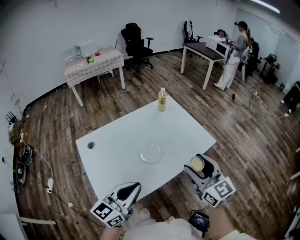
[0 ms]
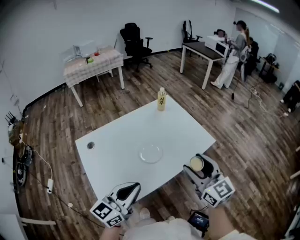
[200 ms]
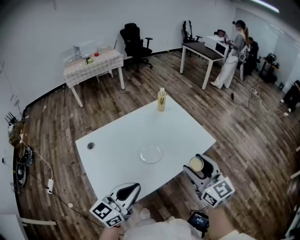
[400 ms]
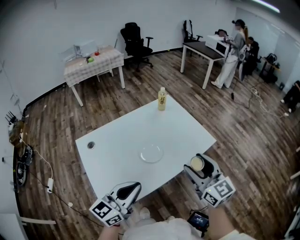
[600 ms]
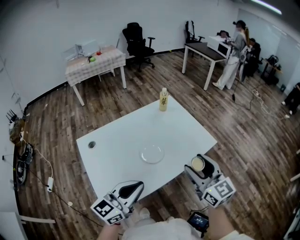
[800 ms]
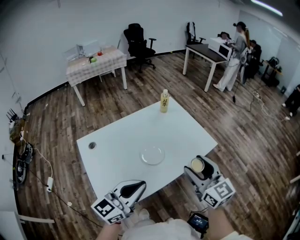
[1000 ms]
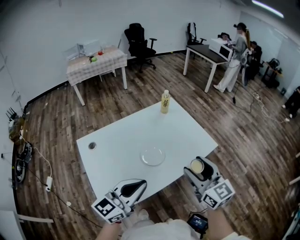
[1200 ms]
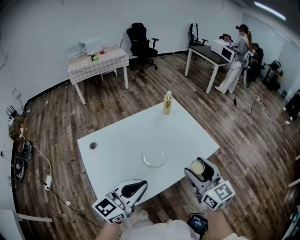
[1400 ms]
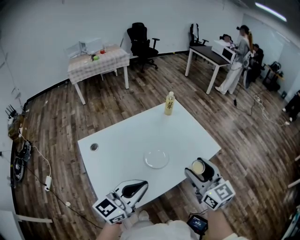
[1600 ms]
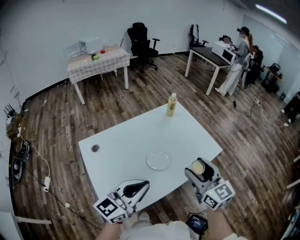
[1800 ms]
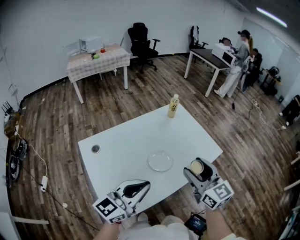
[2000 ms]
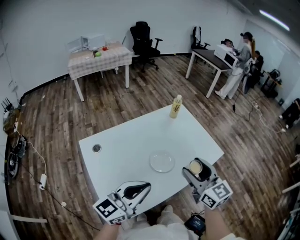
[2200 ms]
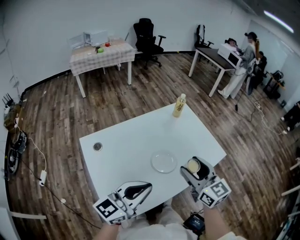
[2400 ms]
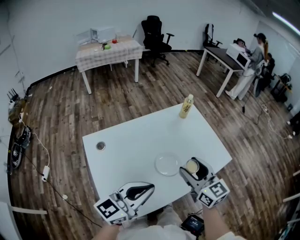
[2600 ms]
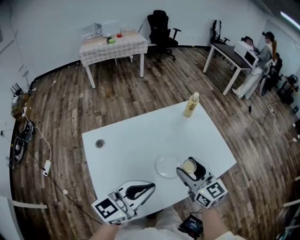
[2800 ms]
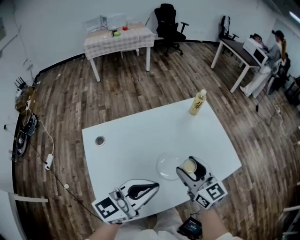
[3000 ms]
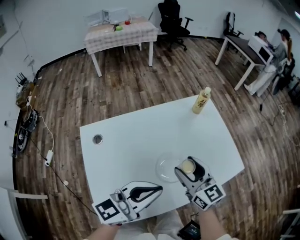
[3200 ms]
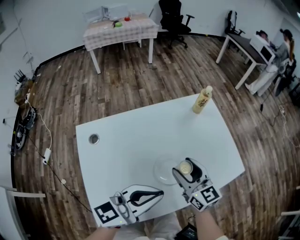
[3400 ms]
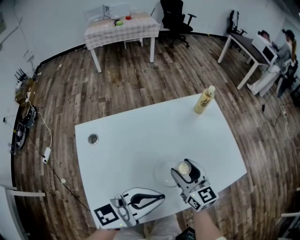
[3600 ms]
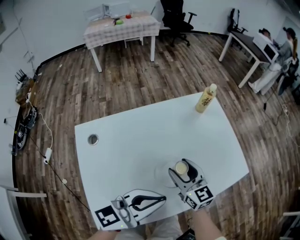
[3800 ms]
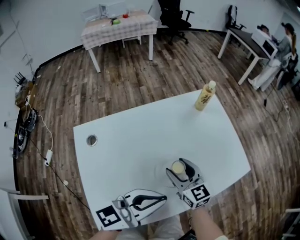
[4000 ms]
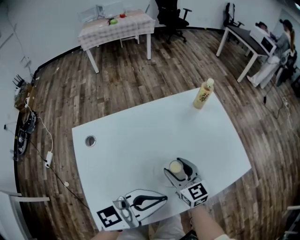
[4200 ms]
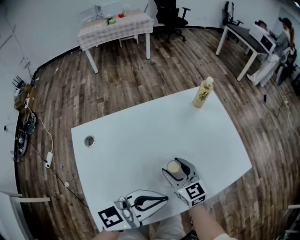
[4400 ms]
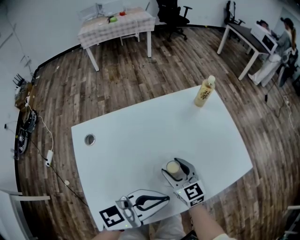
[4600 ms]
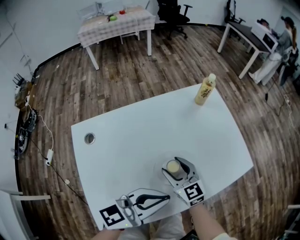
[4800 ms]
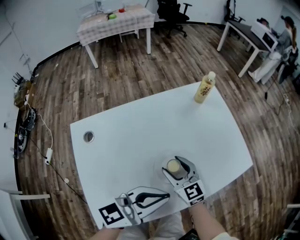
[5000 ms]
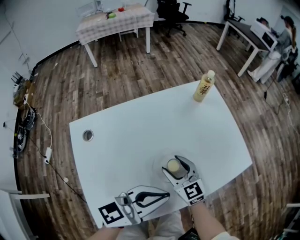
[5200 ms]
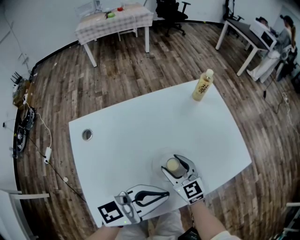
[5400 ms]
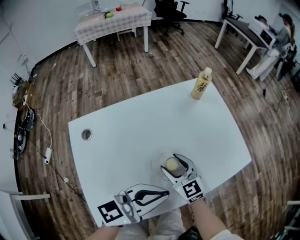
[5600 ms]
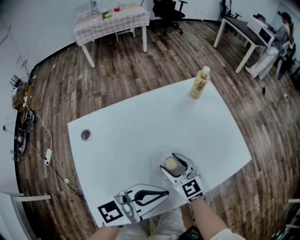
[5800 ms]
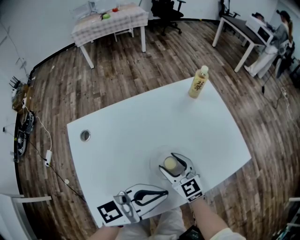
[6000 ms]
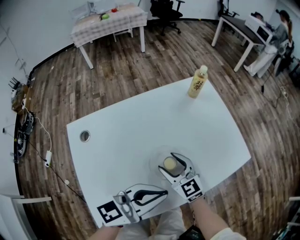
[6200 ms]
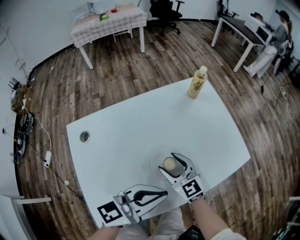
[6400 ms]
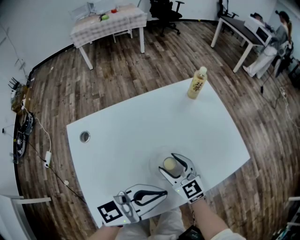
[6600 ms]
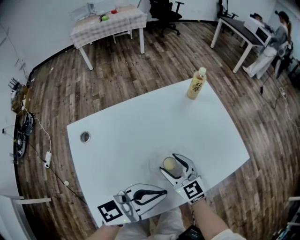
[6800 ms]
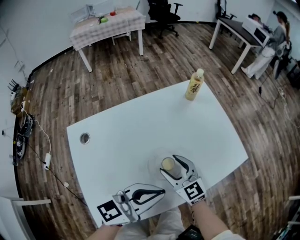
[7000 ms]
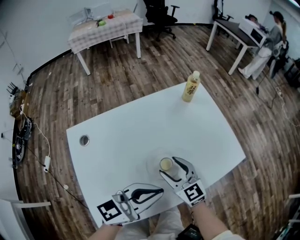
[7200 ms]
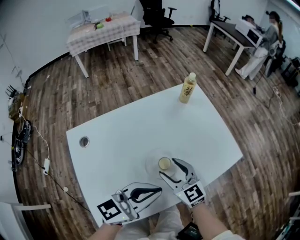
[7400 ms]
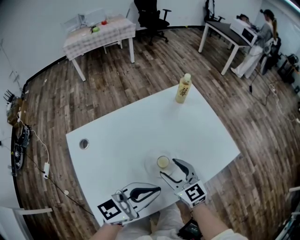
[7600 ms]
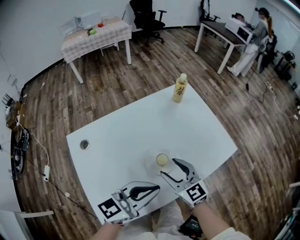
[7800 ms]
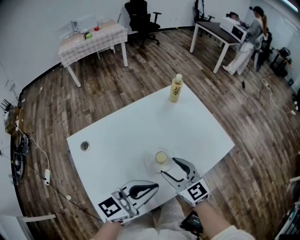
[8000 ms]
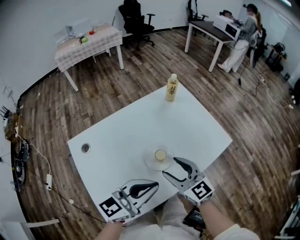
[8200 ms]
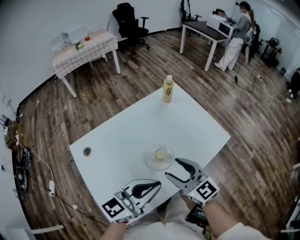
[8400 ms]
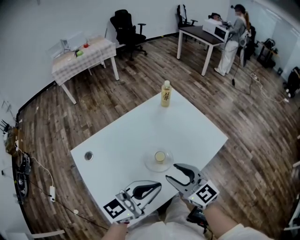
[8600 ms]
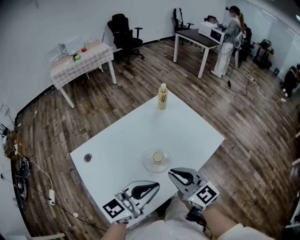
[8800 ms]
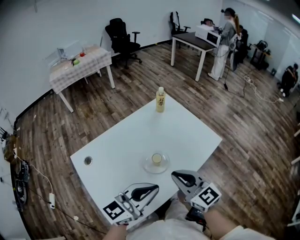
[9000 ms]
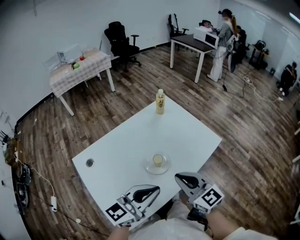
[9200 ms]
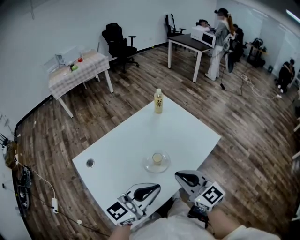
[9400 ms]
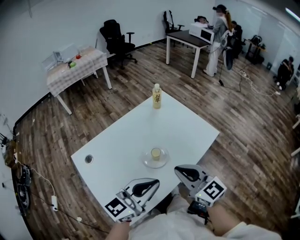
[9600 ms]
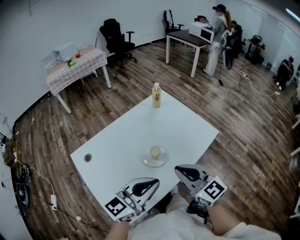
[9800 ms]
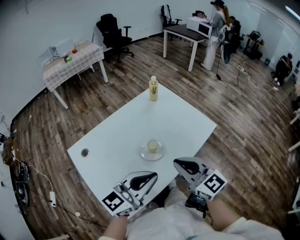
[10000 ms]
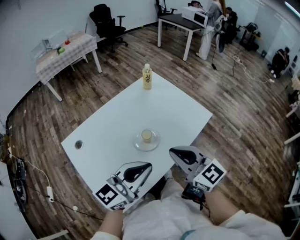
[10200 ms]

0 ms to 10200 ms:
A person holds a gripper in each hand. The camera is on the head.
0 ms to 1400 ms: The grippers stay close to where they were, moving slightly.
1400 ms to 3000 ms: The left gripper goes some 10 cm forward. The right gripper heads to the left, forward and downward, covering roughly 20 cm.
3000 ms to 4400 ms: The right gripper goes some 15 cm downward, while the left gripper shifts roughly 5 cm downward.
4400 ms to 7200 ms: The grippers move only a little.
7200 ms to 8800 ms: The left gripper shifts about 10 cm backward and upward. The right gripper is displaced upward and backward by approximately 15 cm, and closes up.
8800 ms to 10200 ms: The right gripper changes place by approximately 5 cm.

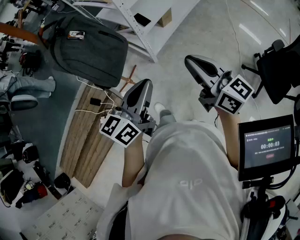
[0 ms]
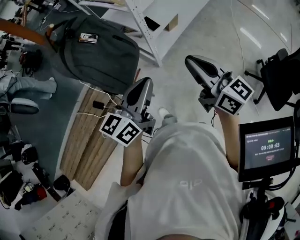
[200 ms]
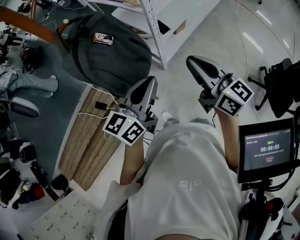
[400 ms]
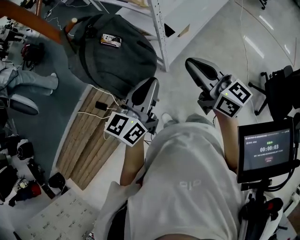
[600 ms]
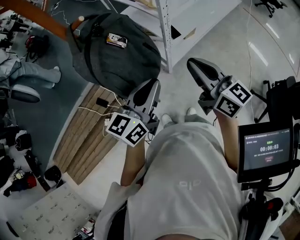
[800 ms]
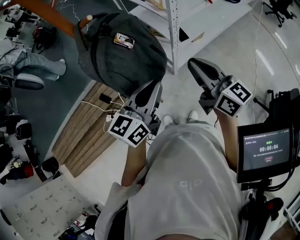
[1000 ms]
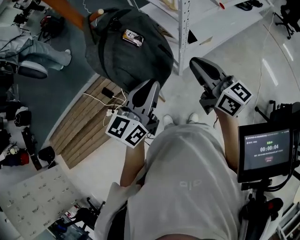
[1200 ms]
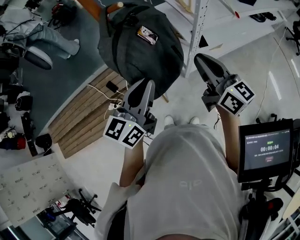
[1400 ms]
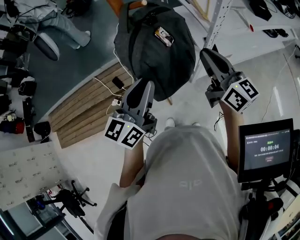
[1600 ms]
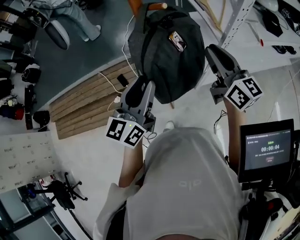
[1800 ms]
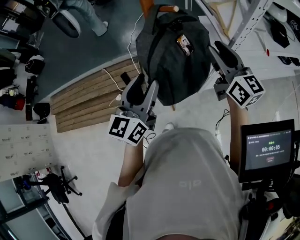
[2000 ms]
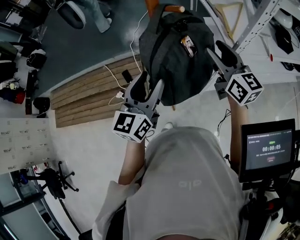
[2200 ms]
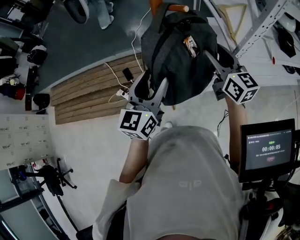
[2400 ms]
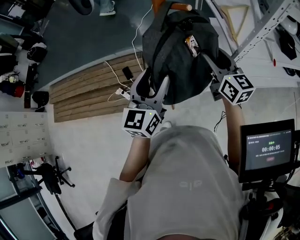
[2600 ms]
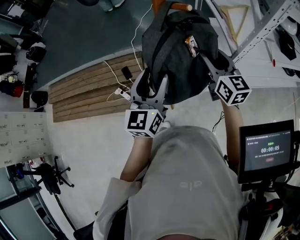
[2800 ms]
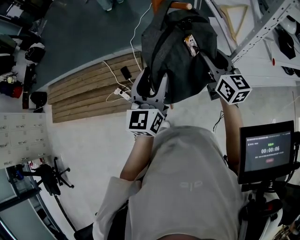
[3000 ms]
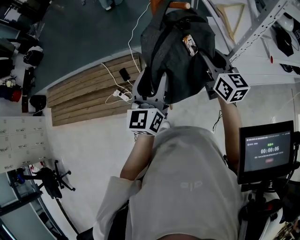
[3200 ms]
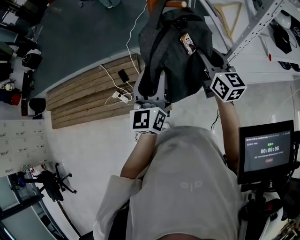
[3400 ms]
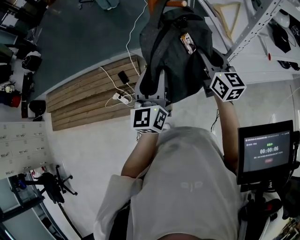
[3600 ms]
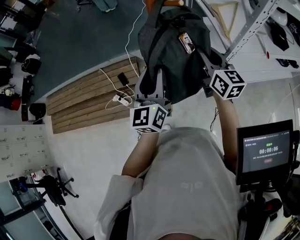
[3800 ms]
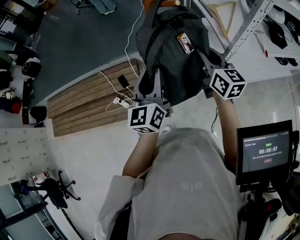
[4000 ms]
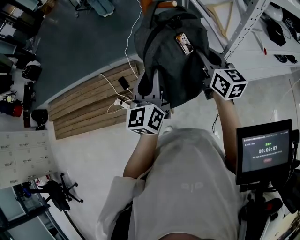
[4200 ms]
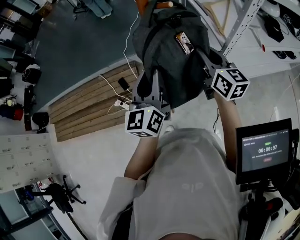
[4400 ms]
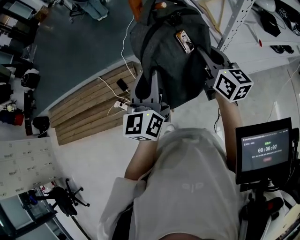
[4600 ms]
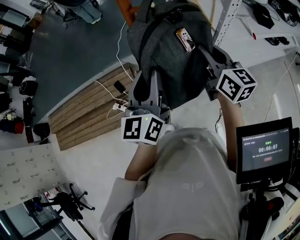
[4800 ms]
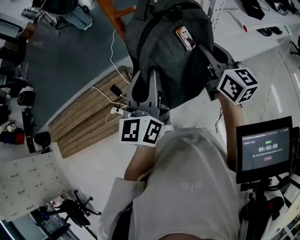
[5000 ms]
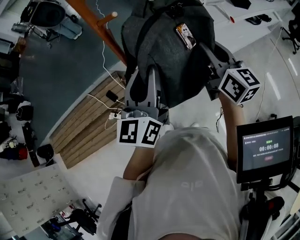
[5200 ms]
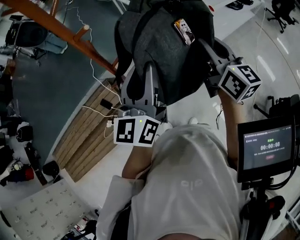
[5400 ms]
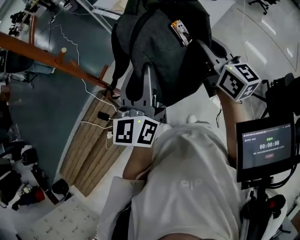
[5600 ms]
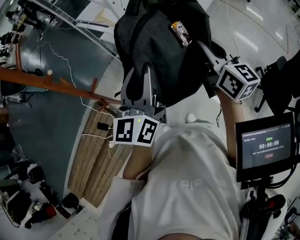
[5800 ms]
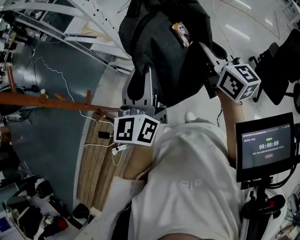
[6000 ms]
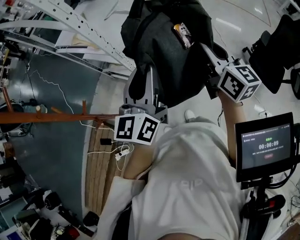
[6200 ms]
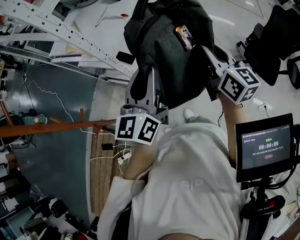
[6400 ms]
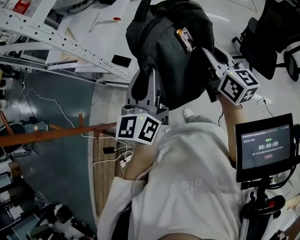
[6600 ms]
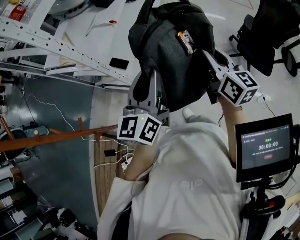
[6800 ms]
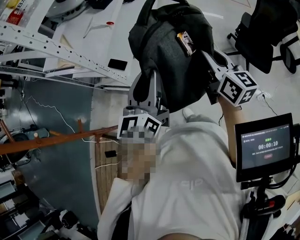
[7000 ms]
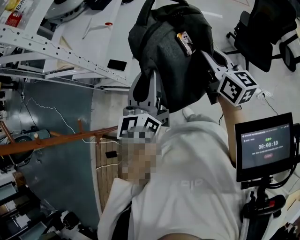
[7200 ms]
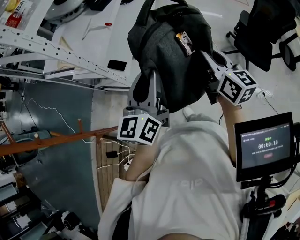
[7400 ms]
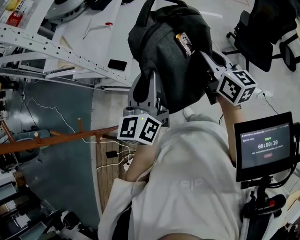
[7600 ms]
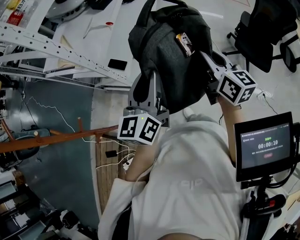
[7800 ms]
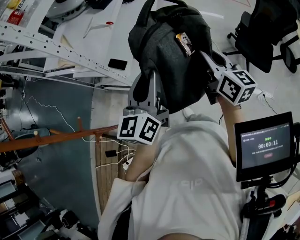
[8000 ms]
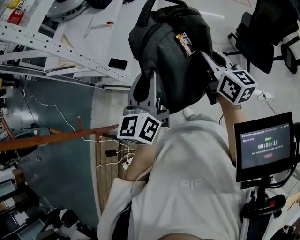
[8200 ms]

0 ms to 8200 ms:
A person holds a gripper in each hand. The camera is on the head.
0 ms to 1600 ms: The left gripper changes place by some 30 cm, and rotates approximately 40 degrees. The right gripper shifts by some 40 cm, and changes its angle by roughly 20 degrees.
1600 ms to 3200 ms: The left gripper moves approximately 5 cm, rotates about 30 degrees, and opens up. The right gripper is displaced forward and downward by some 10 cm, and opens up.
3200 ms to 5000 ms: The right gripper travels upward and to the right by roughly 10 cm. The left gripper travels upward by about 5 cm, and closes.
5000 ms to 6600 ms: The left gripper changes place by approximately 35 cm, and swivels about 60 degrees. The right gripper shifts by roughly 40 cm, and turns by some 50 degrees.
6600 ms to 8200 ms: The grippers stay close to where they were, moving slightly.

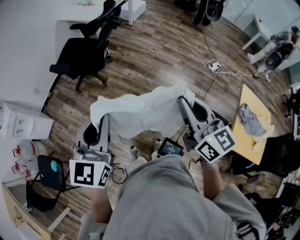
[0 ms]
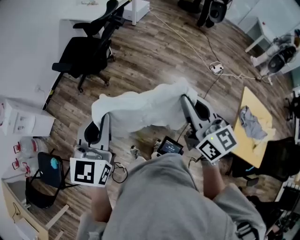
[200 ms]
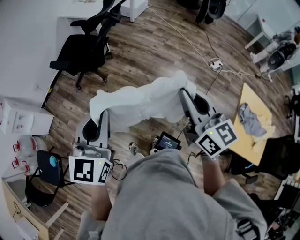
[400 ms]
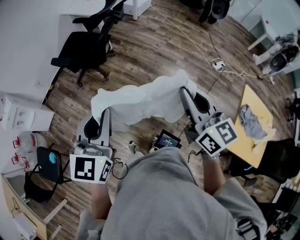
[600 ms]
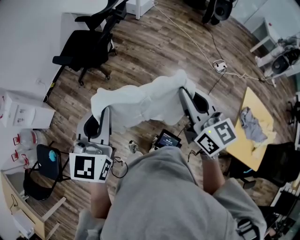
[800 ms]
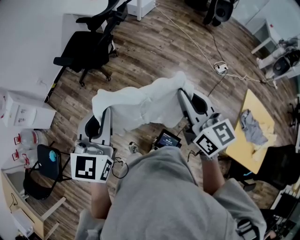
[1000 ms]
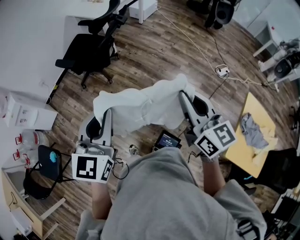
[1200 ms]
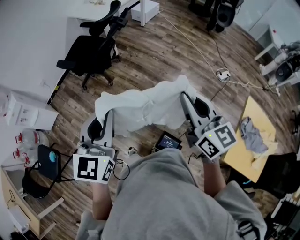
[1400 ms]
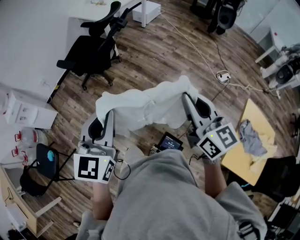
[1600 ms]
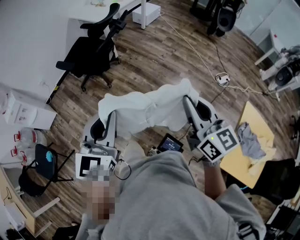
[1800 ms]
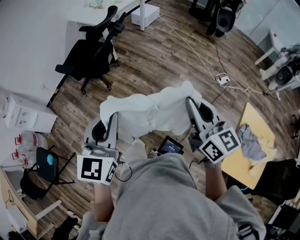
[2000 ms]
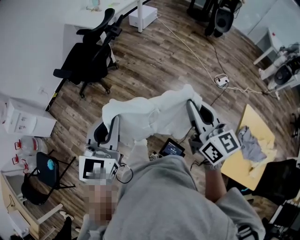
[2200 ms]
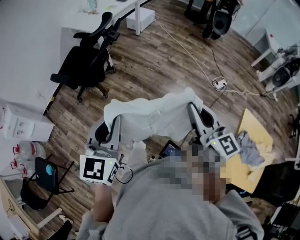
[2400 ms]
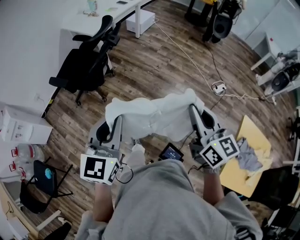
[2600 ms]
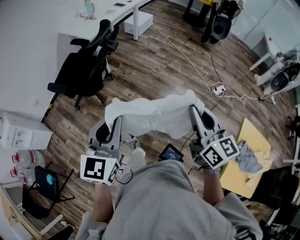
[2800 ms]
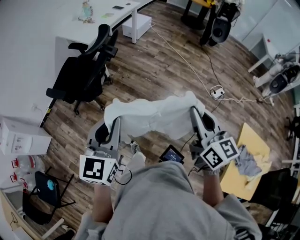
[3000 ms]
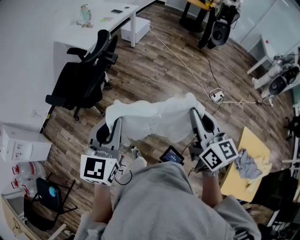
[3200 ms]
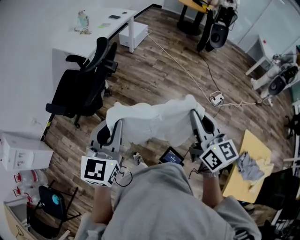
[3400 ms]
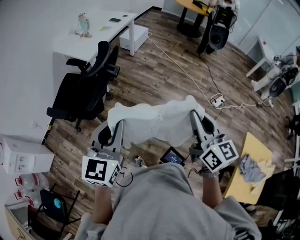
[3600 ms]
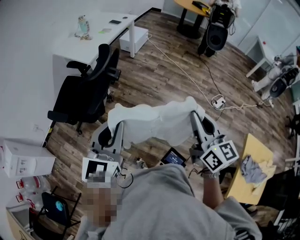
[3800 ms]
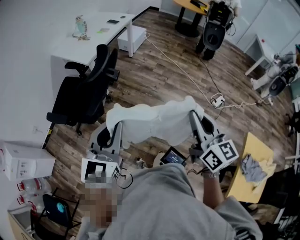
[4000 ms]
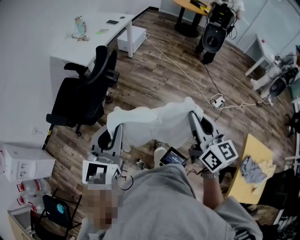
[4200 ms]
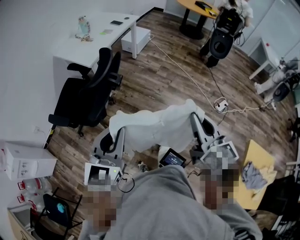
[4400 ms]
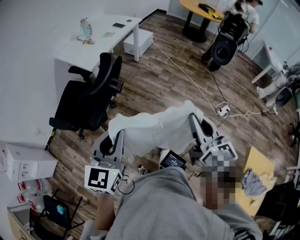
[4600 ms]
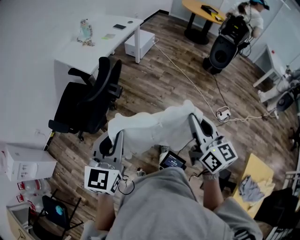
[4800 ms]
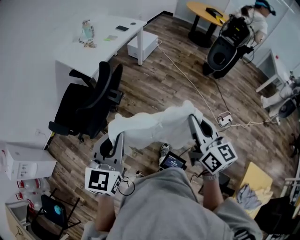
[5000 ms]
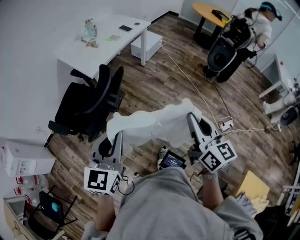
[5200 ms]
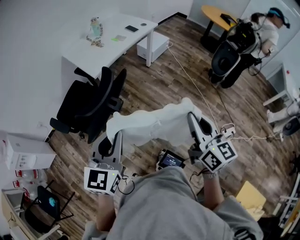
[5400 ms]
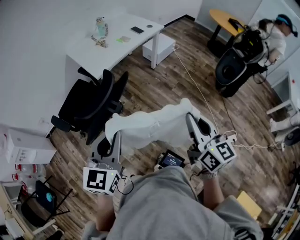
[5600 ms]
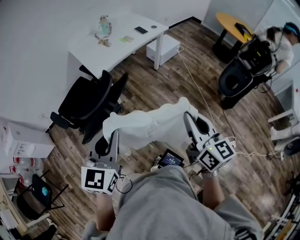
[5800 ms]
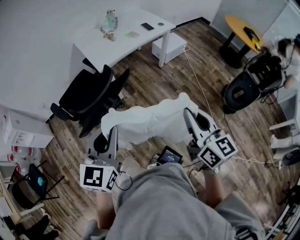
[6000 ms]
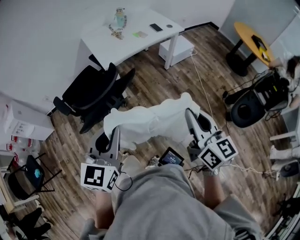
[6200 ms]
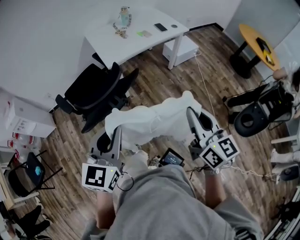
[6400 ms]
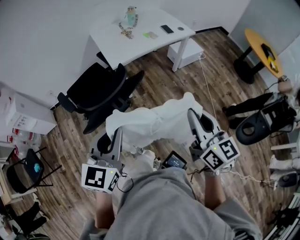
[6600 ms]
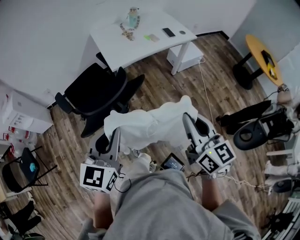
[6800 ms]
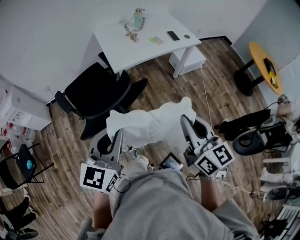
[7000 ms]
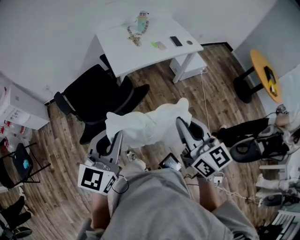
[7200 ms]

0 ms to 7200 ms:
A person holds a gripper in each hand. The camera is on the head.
0 ms to 1400 ms: Both grippers move to the right, roughly 10 cm.
1400 ms to 2800 ms: The left gripper heads forward, covering about 15 cm; the right gripper goes some 15 cm forward and to the right.
2800 ms to 4400 ms: The grippers both shift forward by roughly 15 cm.
4400 ms to 5800 ms: Both grippers move forward, some 25 cm. The left gripper turns by approximately 20 degrees; the right gripper turns by about 20 degrees.
5800 ms to 7200 ms: The right gripper is displaced forward and to the left by about 15 cm, and swivels roughly 20 degrees. The left gripper heads forward, covering about 10 cm.
